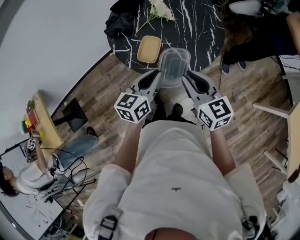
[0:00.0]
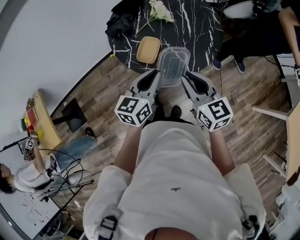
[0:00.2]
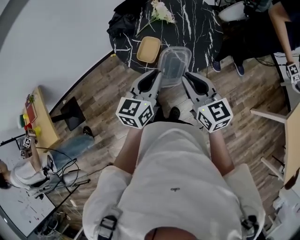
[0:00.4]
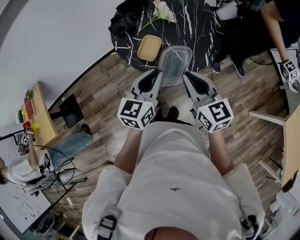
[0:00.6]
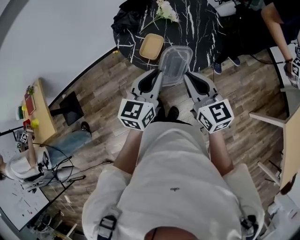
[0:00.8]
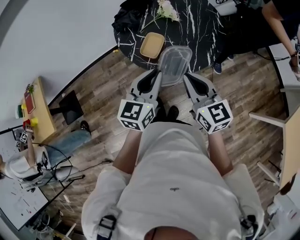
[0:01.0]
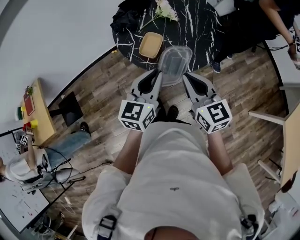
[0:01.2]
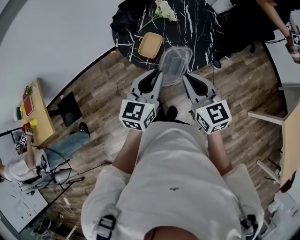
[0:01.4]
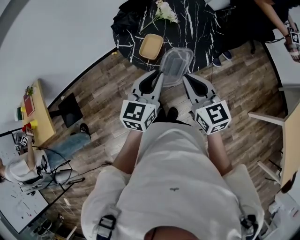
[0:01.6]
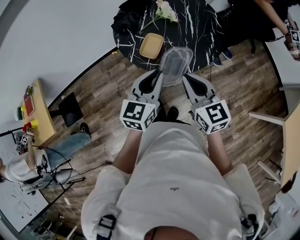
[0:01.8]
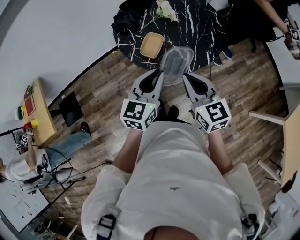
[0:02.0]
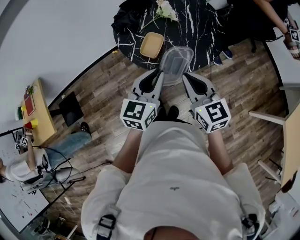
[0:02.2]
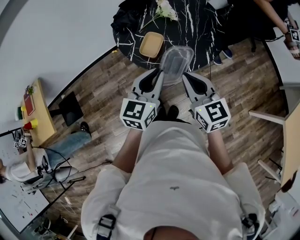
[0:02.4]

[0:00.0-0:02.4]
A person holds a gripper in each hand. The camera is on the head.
0:00.0 to 0:01.2: The right gripper moves about 5 cm. Meanwhile the left gripper travels upward and backward by some 10 cm.
0:01.2 to 0:02.4: Neither gripper changes place.

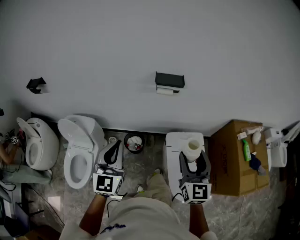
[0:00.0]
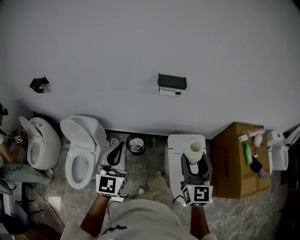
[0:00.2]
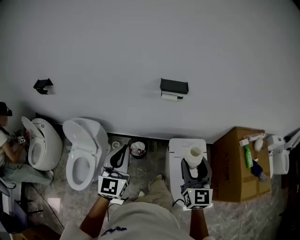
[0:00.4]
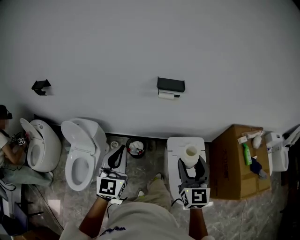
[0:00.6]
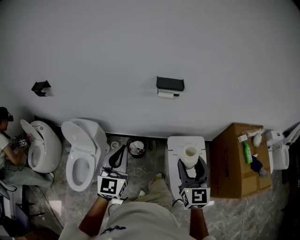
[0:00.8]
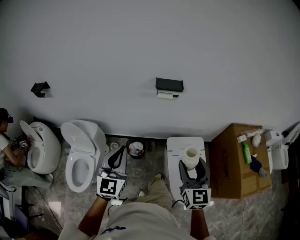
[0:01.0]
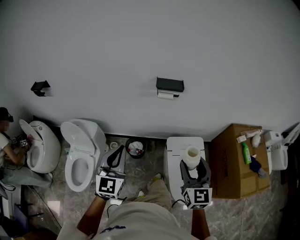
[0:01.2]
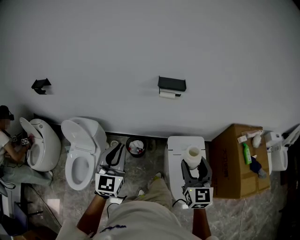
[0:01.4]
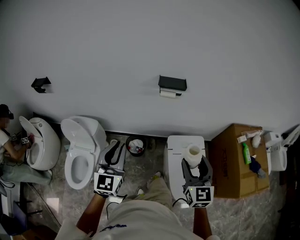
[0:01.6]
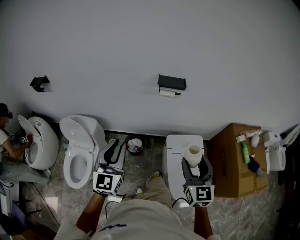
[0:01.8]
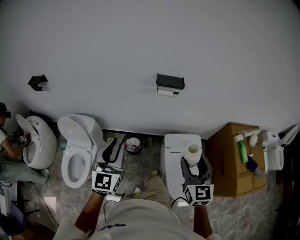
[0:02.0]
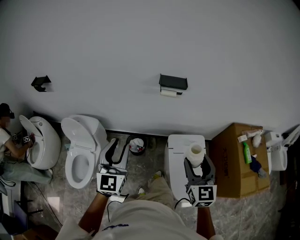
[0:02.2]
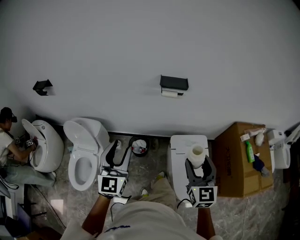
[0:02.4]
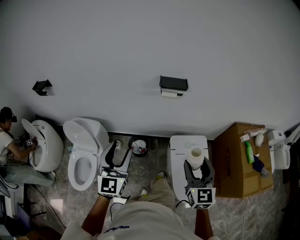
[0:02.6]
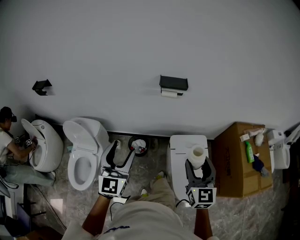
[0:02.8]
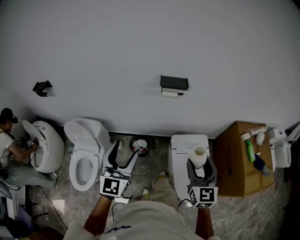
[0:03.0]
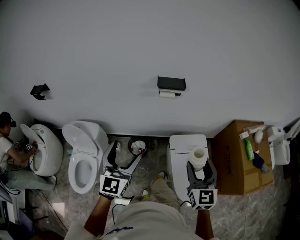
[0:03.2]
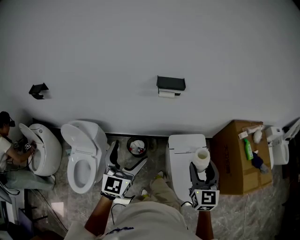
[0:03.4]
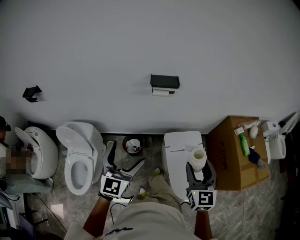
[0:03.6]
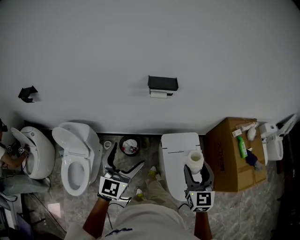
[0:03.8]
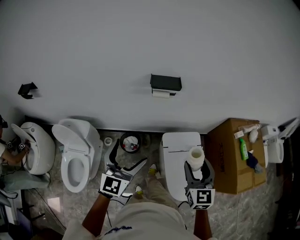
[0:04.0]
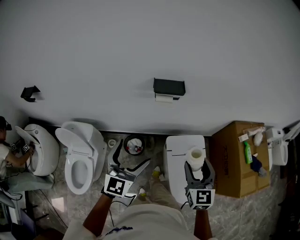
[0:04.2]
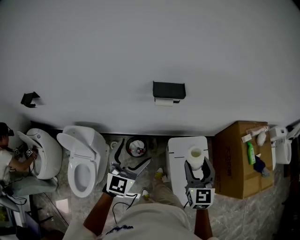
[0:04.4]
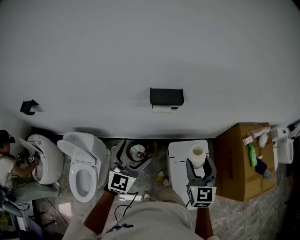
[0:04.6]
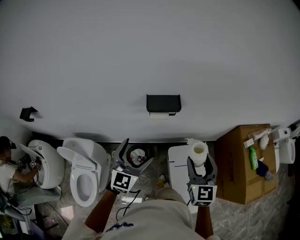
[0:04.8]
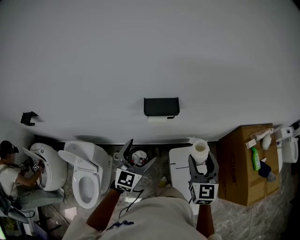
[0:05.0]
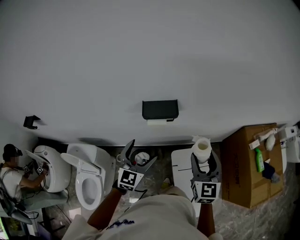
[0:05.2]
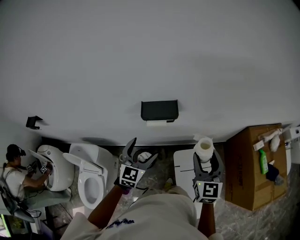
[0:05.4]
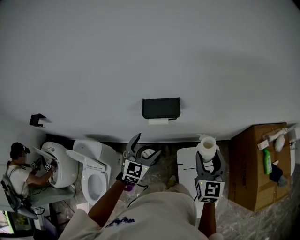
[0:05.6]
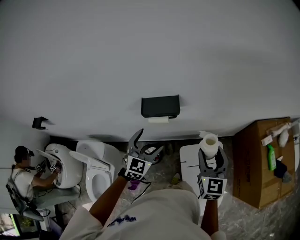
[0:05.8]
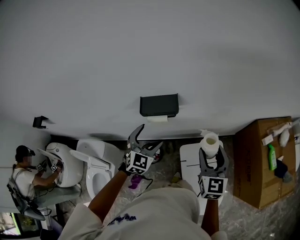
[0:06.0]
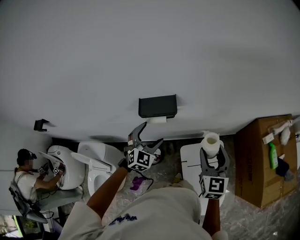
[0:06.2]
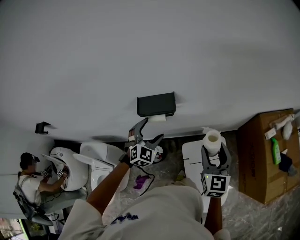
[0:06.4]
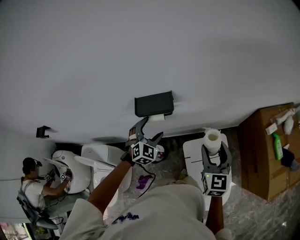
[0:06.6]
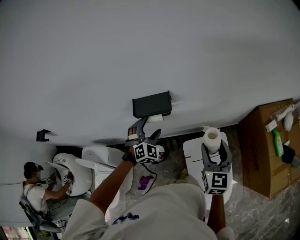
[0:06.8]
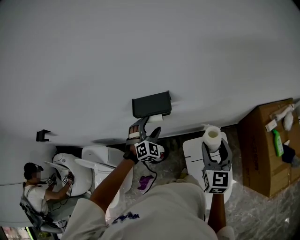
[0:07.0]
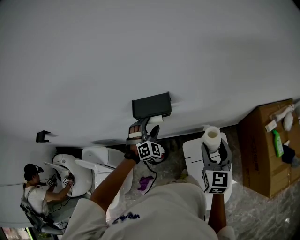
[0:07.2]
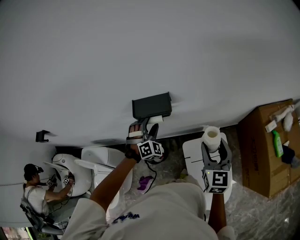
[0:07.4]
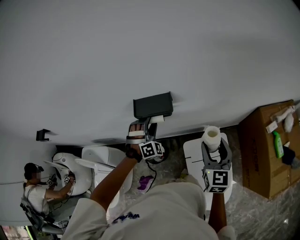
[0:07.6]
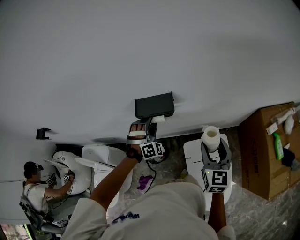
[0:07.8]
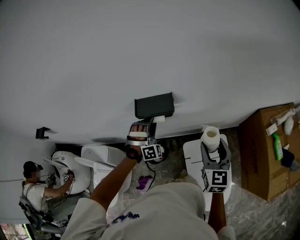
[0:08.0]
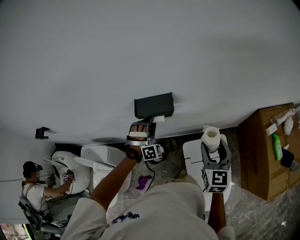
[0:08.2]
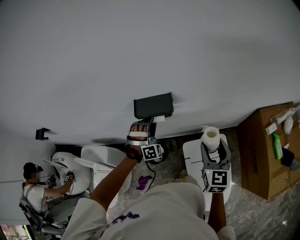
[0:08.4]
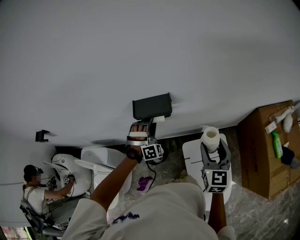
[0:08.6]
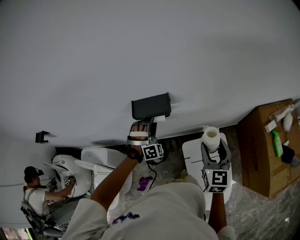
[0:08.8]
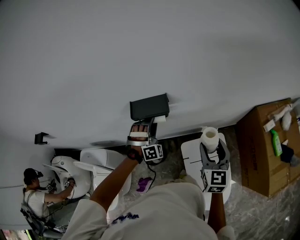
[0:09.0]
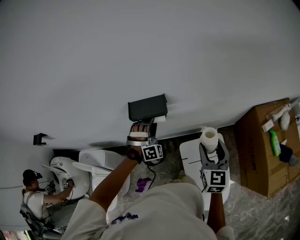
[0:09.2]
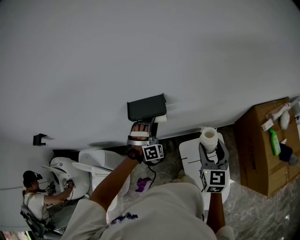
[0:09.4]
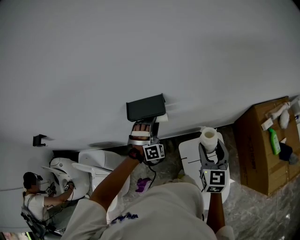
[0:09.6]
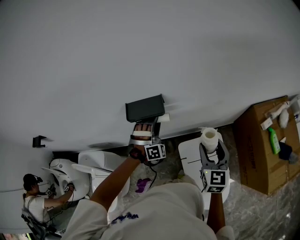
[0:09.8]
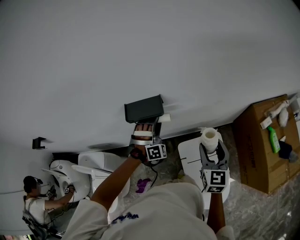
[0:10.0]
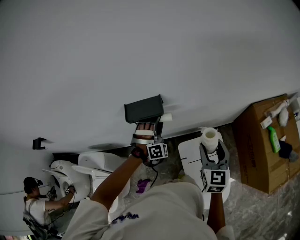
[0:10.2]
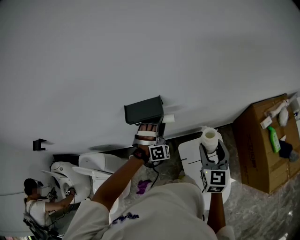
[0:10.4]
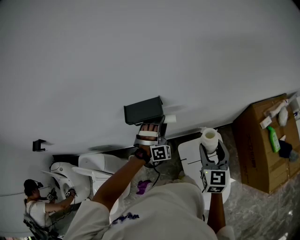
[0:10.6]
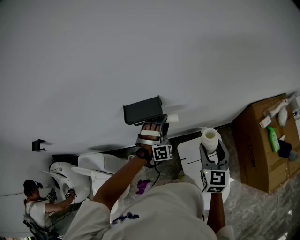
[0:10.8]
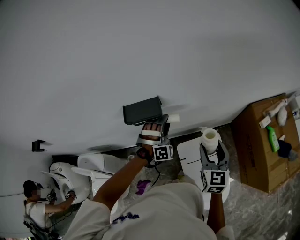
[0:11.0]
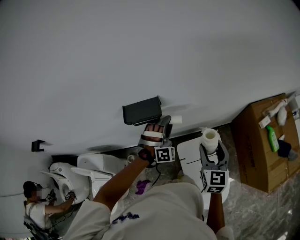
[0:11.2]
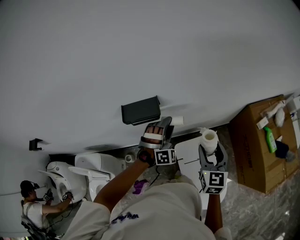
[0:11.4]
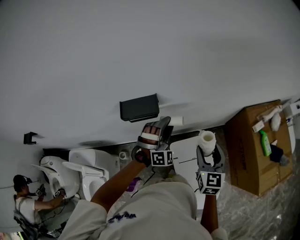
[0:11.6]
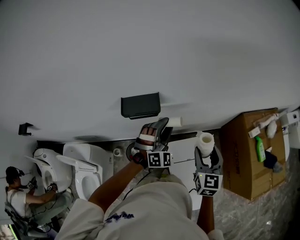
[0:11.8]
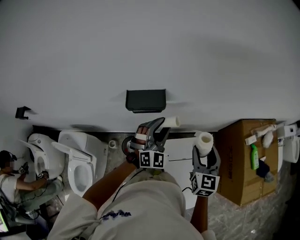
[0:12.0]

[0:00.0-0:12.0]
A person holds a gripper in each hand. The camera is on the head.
0:00.0 to 0:01.6: There are only small adjustments of the grippers.
0:01.6 to 0:03.0: The left gripper opens.
0:03.0 to 0:04.4: Both grippers travel together forward, approximately 10 cm. The left gripper opens.
0:04.4 to 0:06.0: The left gripper travels forward and downward by some 25 cm, and rotates some 30 degrees; the right gripper travels forward and to the right by about 20 cm.
0:06.0 to 0:07.6: The left gripper heads forward, covering roughly 10 cm, twists approximately 40 degrees clockwise, seen from behind, and closes.
0:07.6 to 0:09.0: The grippers stay close to where they were, moving slightly.
0:09.0 to 0:10.4: The left gripper travels to the right by about 5 cm.
0:10.4 to 0:12.0: The left gripper goes roughly 10 cm upward and backward, and changes its angle by roughly 40 degrees.

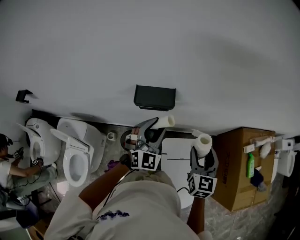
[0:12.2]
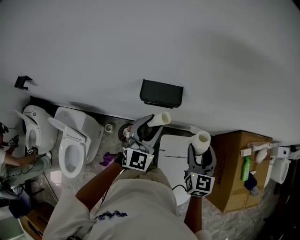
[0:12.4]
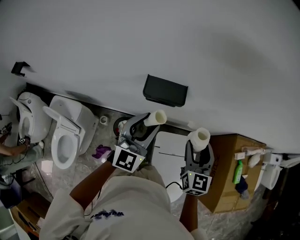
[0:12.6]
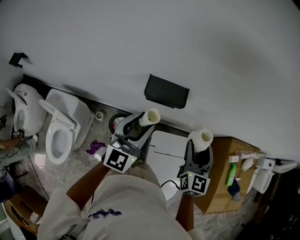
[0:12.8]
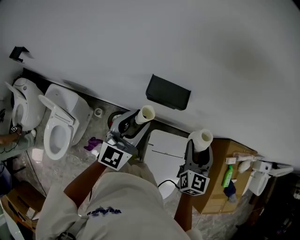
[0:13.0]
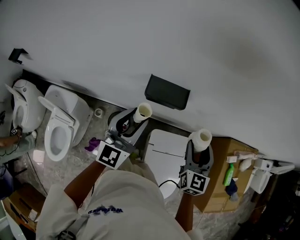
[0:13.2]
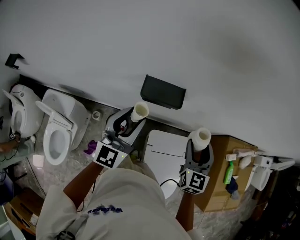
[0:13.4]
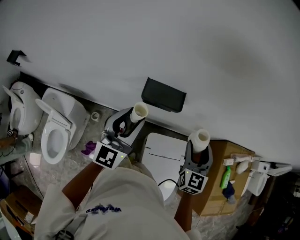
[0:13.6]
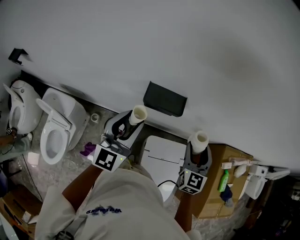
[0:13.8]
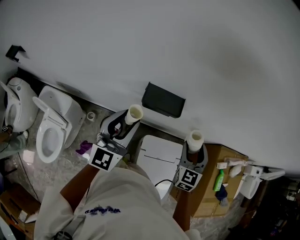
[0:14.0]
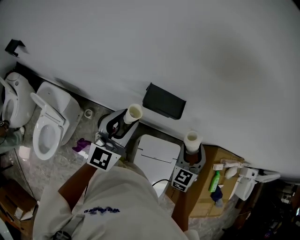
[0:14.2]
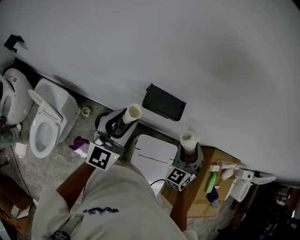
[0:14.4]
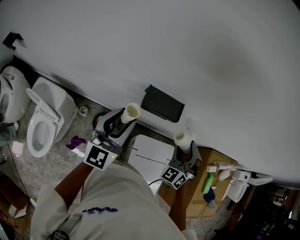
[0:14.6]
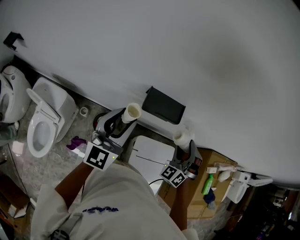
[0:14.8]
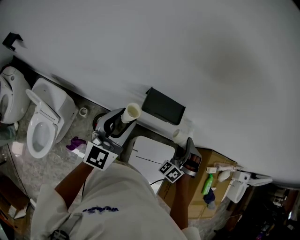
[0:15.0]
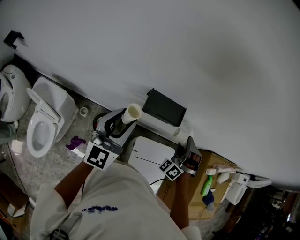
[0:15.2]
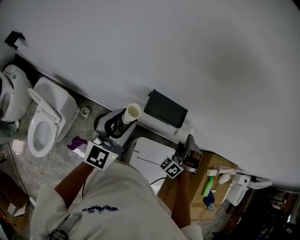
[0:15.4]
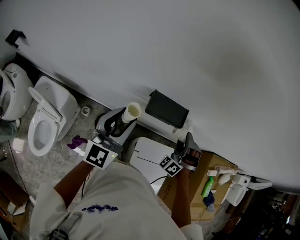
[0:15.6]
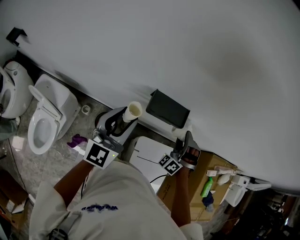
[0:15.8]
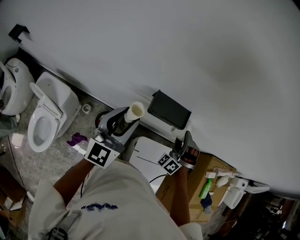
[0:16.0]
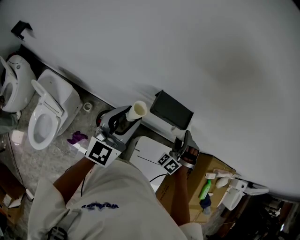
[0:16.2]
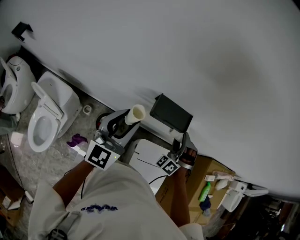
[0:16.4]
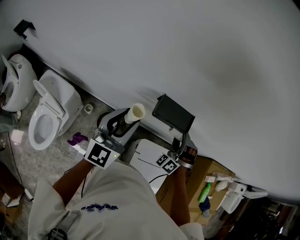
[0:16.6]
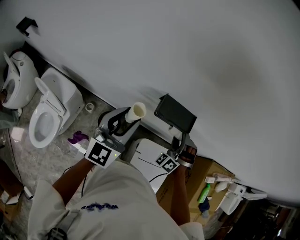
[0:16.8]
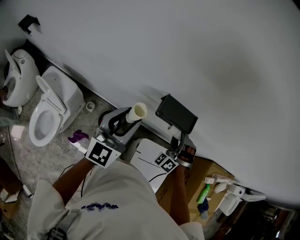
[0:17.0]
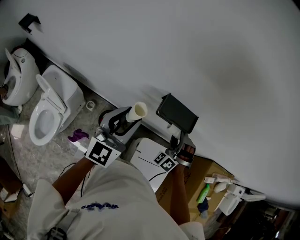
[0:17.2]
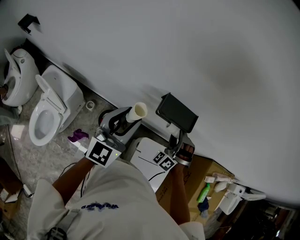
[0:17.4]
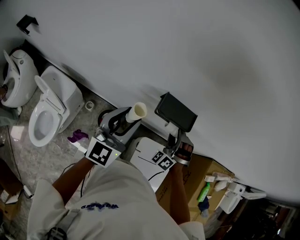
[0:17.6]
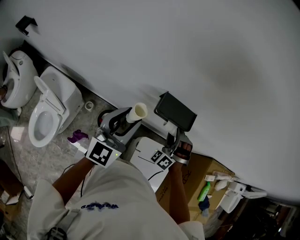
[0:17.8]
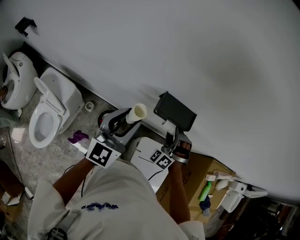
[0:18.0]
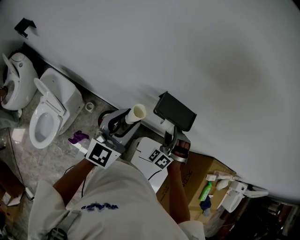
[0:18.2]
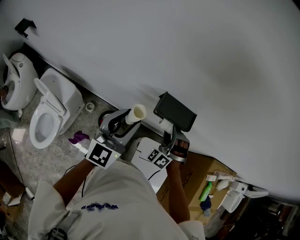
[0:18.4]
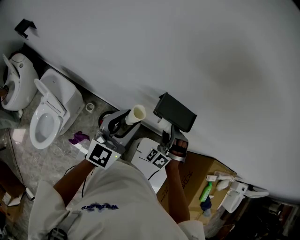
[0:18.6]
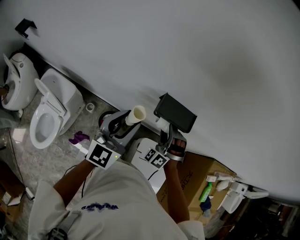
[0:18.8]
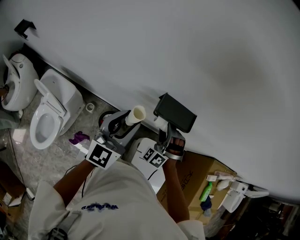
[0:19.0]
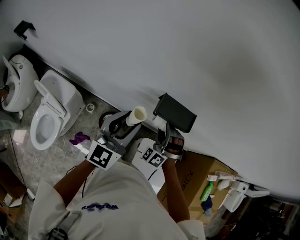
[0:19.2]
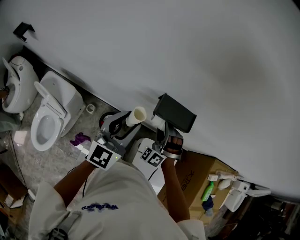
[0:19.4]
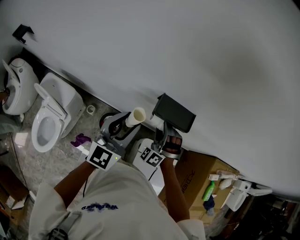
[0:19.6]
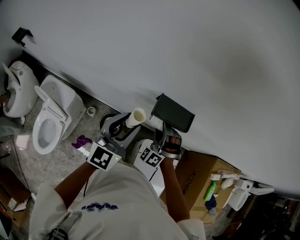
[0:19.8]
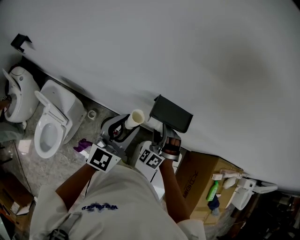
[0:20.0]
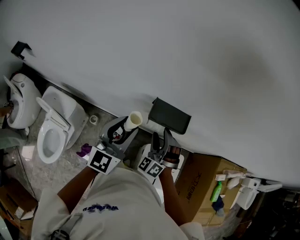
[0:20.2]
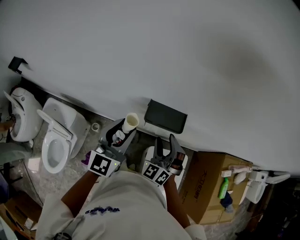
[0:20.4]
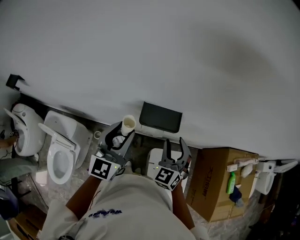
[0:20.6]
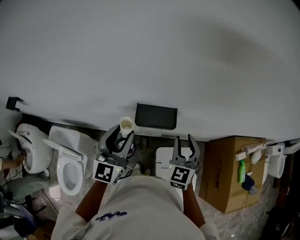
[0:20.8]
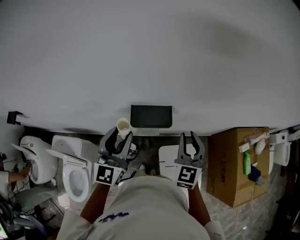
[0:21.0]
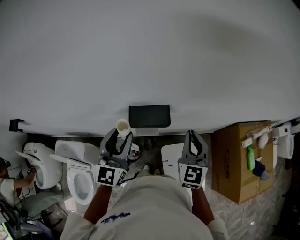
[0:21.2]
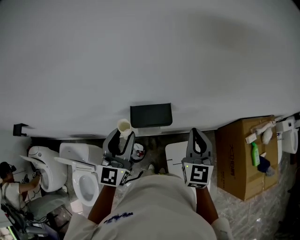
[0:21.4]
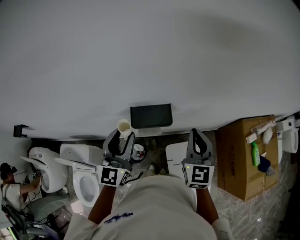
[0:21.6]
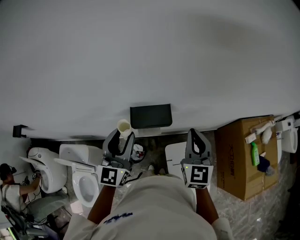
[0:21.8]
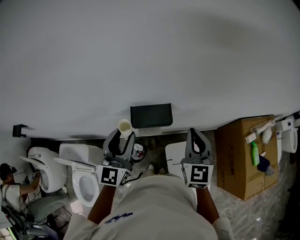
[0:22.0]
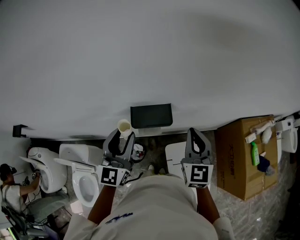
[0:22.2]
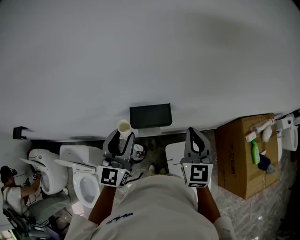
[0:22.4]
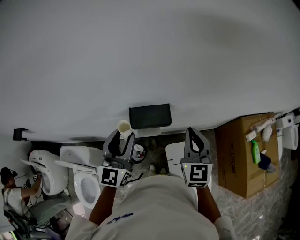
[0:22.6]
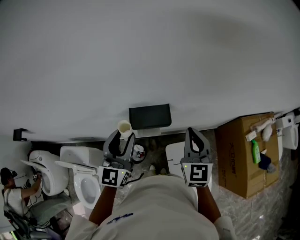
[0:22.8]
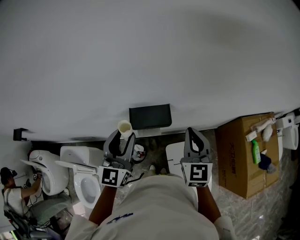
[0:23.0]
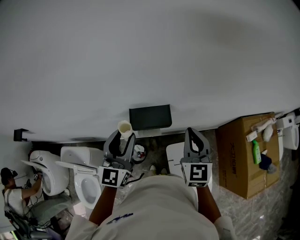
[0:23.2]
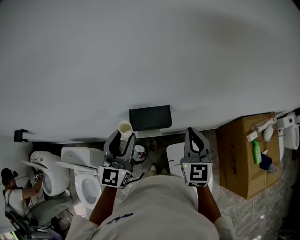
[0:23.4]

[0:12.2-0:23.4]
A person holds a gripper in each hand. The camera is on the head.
0:12.2 to 0:13.8: The left gripper shifts approximately 15 cm to the left and upward, and rotates approximately 40 degrees; the right gripper shifts approximately 5 cm forward.
0:13.8 to 0:15.4: The left gripper ends up roughly 5 cm from where it was. The right gripper is displaced downward and forward by roughly 10 cm, and rotates around the line of its fingers by some 80 degrees, counterclockwise from behind.
0:15.4 to 0:17.0: The right gripper heads to the left, covering approximately 10 cm.
0:17.0 to 0:18.6: The right gripper is displaced to the left by approximately 5 cm.
0:18.6 to 0:20.2: There are only small adjustments of the grippers.
0:20.2 to 0:21.8: The left gripper moves roughly 5 cm; the right gripper goes about 20 cm to the right and upward, twists some 60 degrees clockwise, seen from behind, and closes its fingers.
0:21.8 to 0:23.4: Both grippers stay about where they are.
